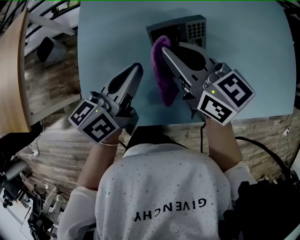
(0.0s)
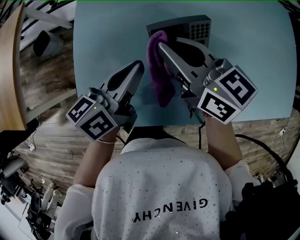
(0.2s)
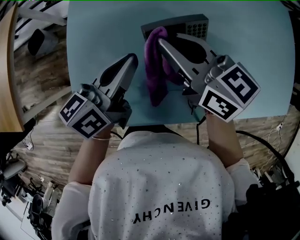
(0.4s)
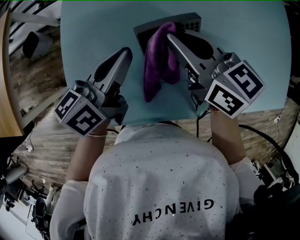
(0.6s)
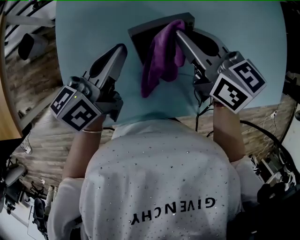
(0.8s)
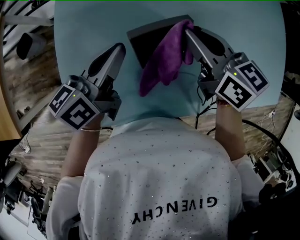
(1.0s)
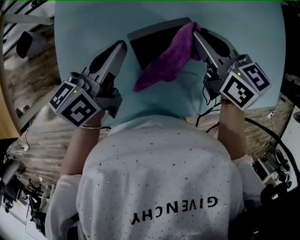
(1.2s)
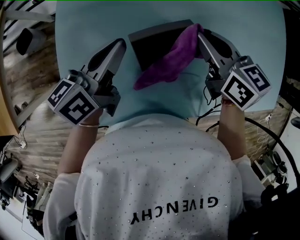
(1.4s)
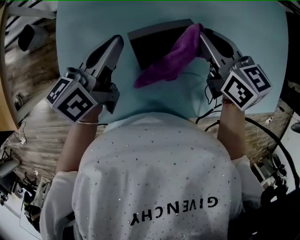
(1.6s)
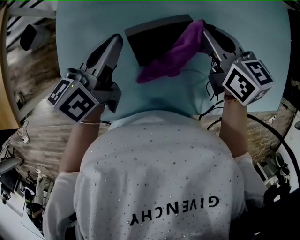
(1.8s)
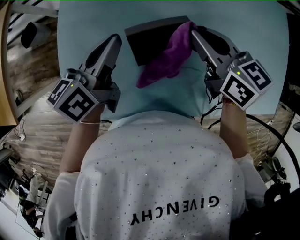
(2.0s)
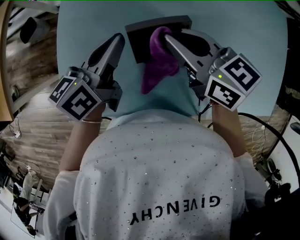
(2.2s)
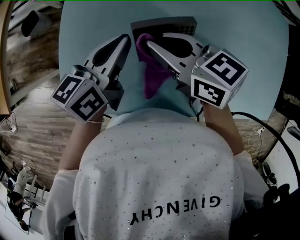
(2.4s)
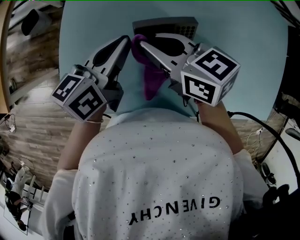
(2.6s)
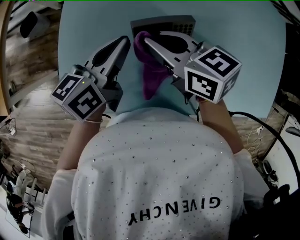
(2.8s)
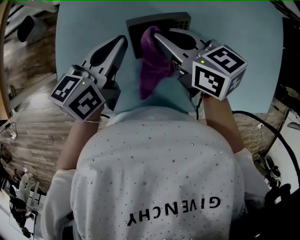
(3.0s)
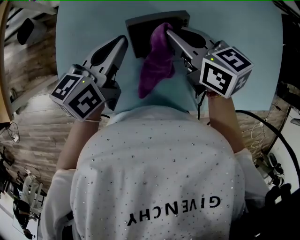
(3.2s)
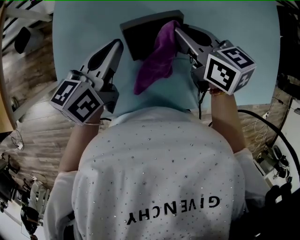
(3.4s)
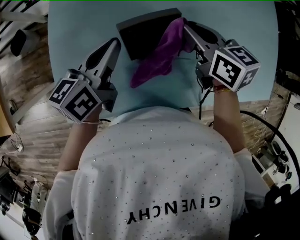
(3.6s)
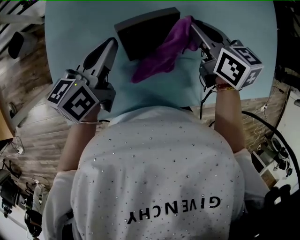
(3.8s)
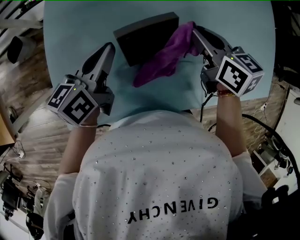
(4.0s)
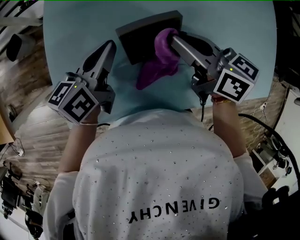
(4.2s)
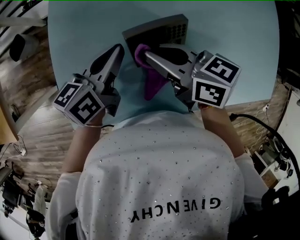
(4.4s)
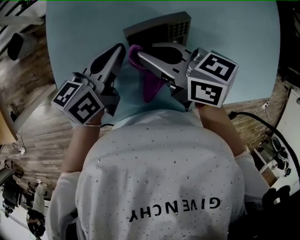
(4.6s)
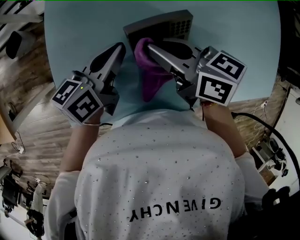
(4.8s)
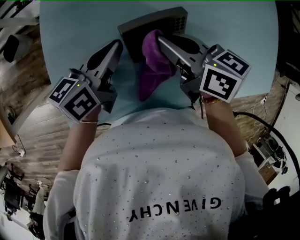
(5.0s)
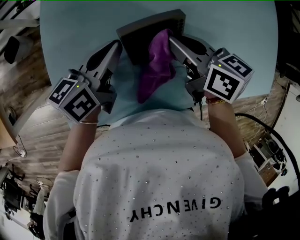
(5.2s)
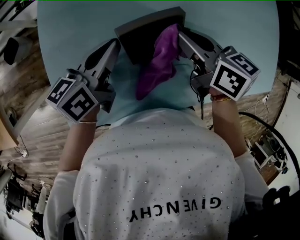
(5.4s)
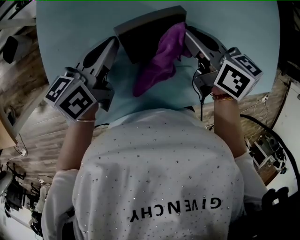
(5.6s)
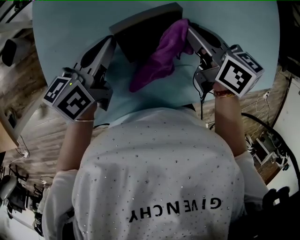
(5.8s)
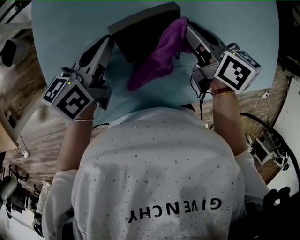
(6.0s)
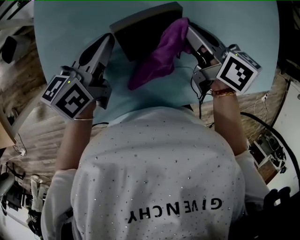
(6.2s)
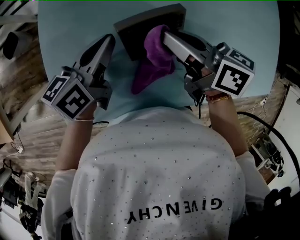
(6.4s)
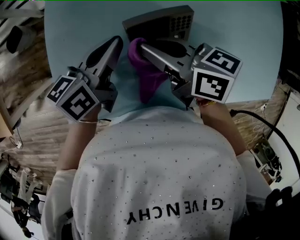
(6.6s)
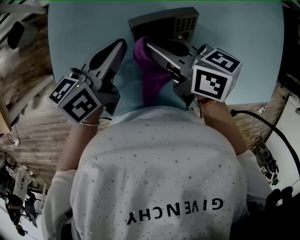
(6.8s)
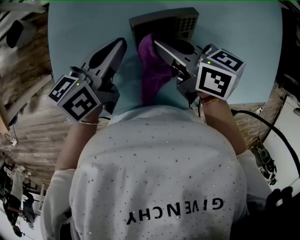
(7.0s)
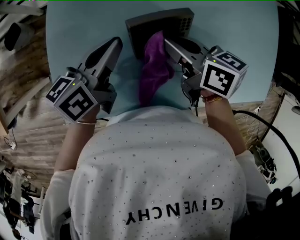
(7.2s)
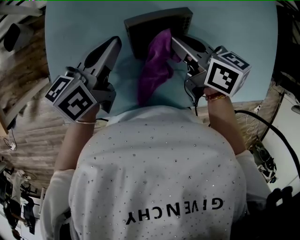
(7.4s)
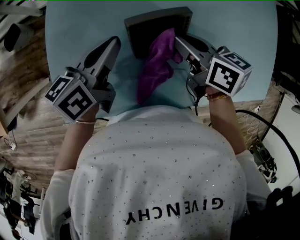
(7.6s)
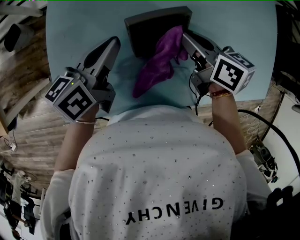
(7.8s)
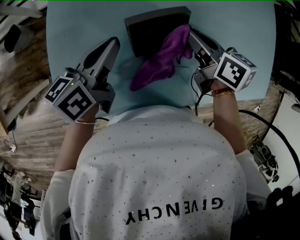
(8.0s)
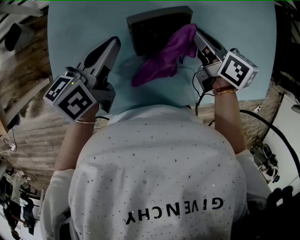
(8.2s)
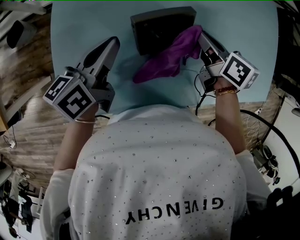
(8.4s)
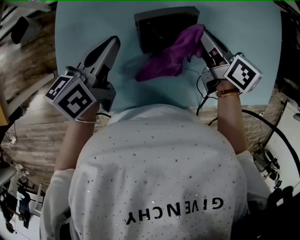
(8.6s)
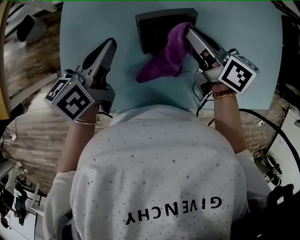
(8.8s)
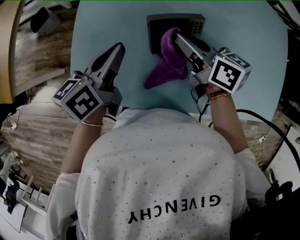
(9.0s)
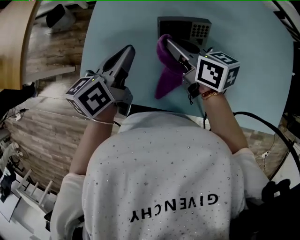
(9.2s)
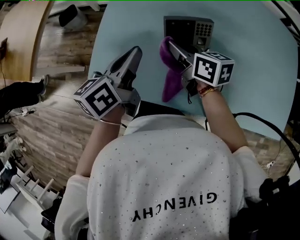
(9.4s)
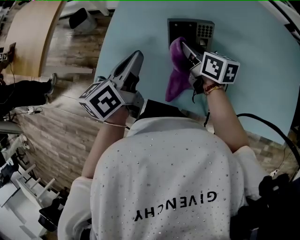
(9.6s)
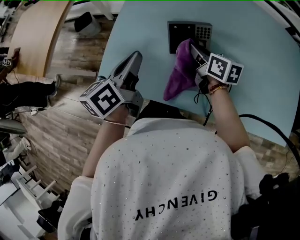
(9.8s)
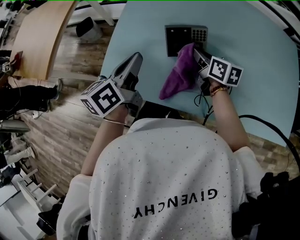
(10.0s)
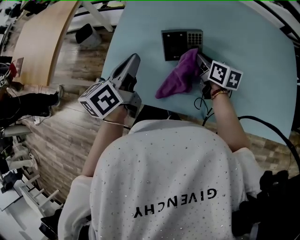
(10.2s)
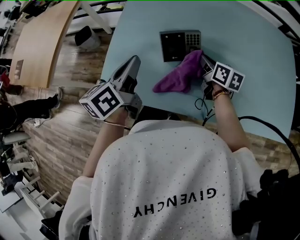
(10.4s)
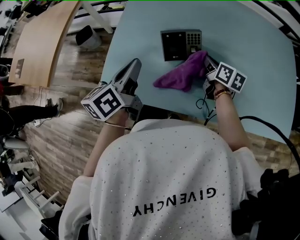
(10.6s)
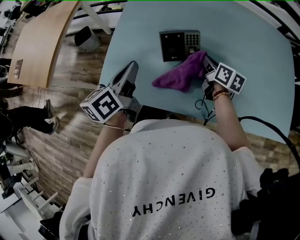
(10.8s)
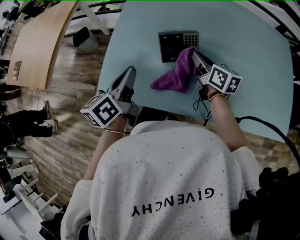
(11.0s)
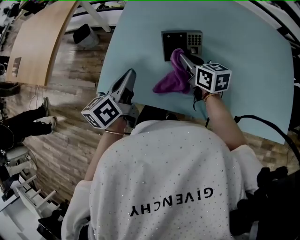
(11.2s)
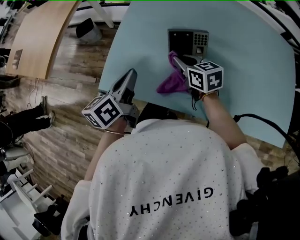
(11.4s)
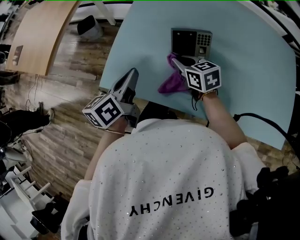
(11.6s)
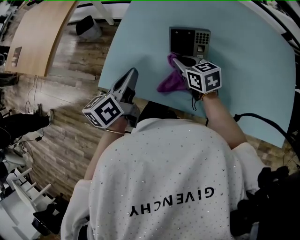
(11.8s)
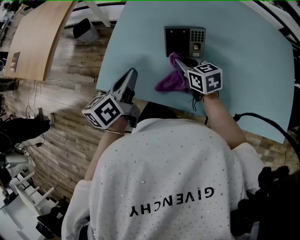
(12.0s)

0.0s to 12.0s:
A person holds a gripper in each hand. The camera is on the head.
0.0s to 1.6s: The right gripper shifts approximately 15 cm to the right and forward. The left gripper goes some 10 cm forward.
1.6s to 3.0s: The right gripper goes approximately 10 cm to the left.
3.0s to 4.4s: The right gripper travels to the right and back again, about 15 cm each way.
4.4s to 6.0s: The right gripper moves to the right, about 15 cm, and swivels roughly 30 degrees.
6.0s to 7.6s: The right gripper is displaced to the left by some 5 cm.
7.6s to 9.0s: The right gripper travels to the right and back again, roughly 10 cm each way; the left gripper heads backward, covering some 5 cm.
9.0s to 10.4s: The right gripper heads to the right, covering approximately 10 cm. Meanwhile the left gripper goes approximately 10 cm upward and backward.
10.4s to 12.0s: The left gripper changes place by some 10 cm. The right gripper moves to the left, approximately 10 cm, and turns by roughly 30 degrees.

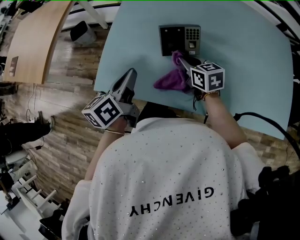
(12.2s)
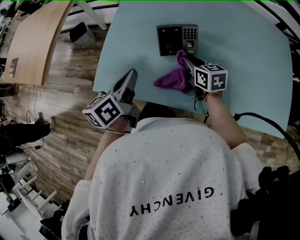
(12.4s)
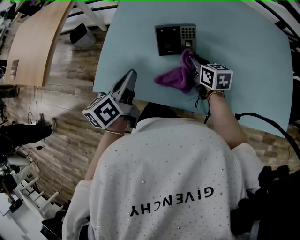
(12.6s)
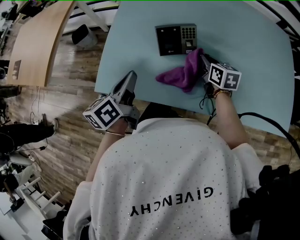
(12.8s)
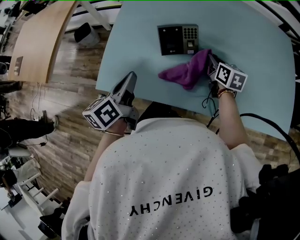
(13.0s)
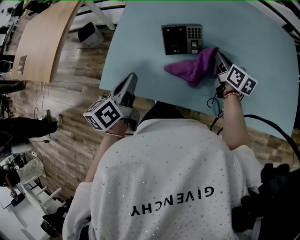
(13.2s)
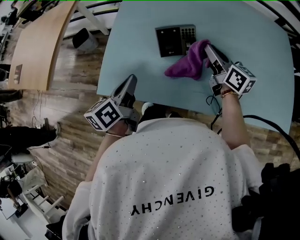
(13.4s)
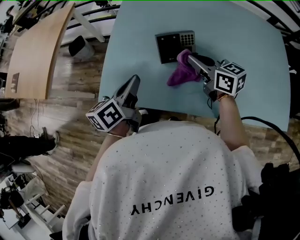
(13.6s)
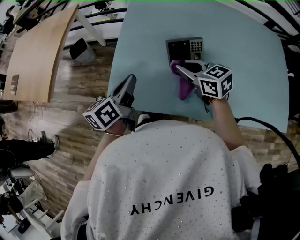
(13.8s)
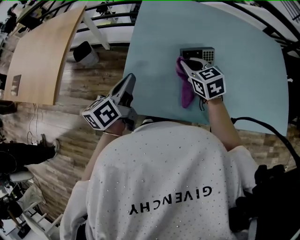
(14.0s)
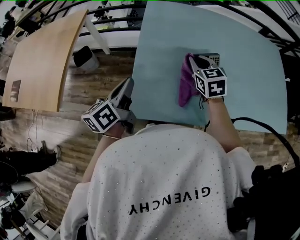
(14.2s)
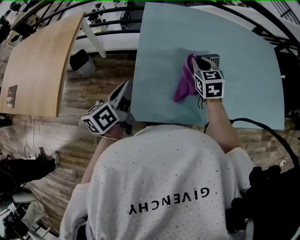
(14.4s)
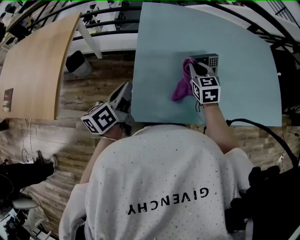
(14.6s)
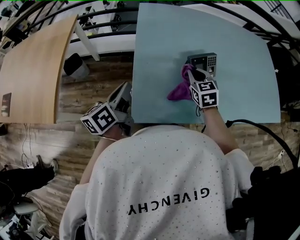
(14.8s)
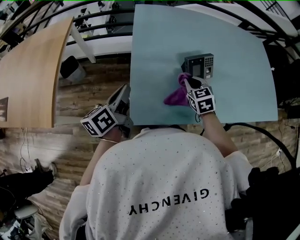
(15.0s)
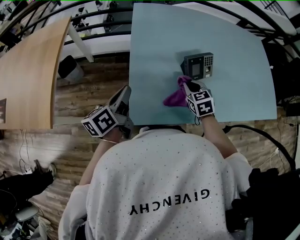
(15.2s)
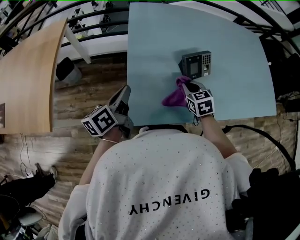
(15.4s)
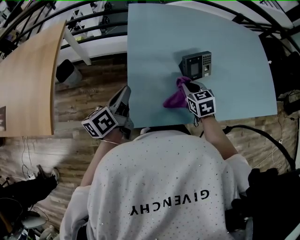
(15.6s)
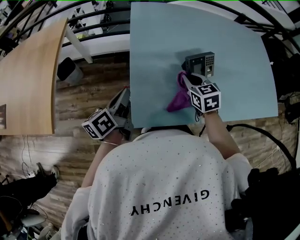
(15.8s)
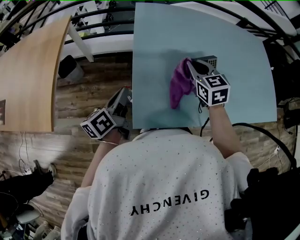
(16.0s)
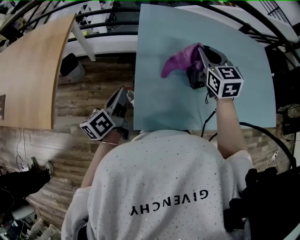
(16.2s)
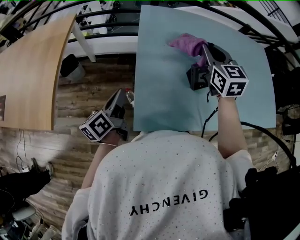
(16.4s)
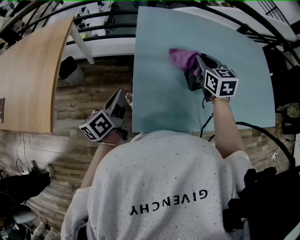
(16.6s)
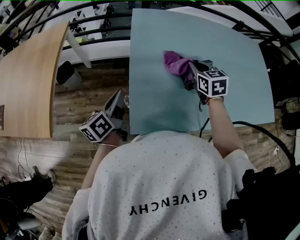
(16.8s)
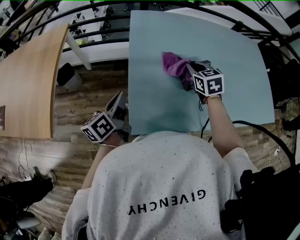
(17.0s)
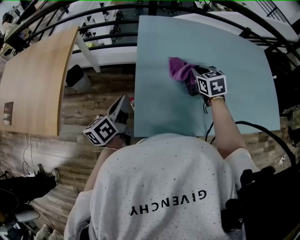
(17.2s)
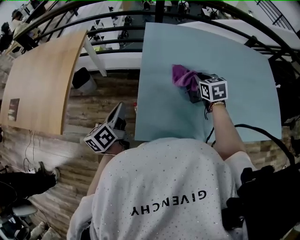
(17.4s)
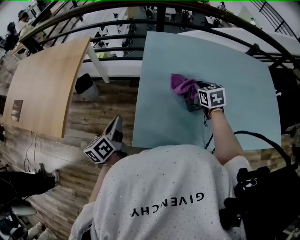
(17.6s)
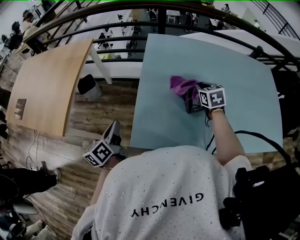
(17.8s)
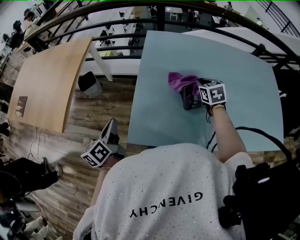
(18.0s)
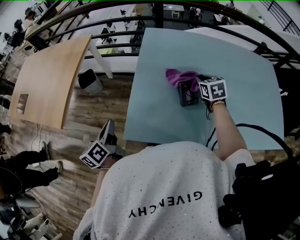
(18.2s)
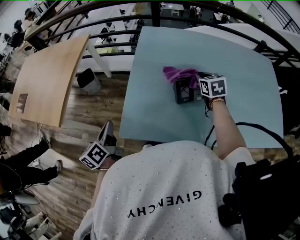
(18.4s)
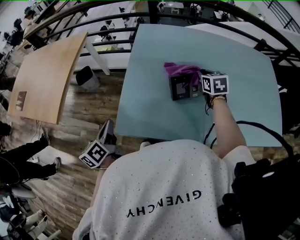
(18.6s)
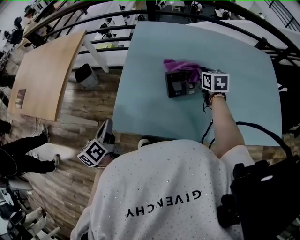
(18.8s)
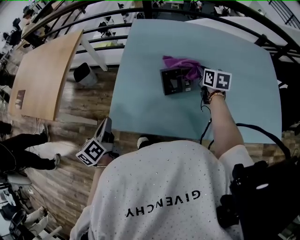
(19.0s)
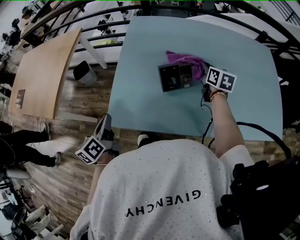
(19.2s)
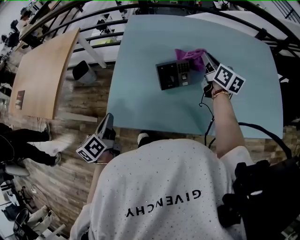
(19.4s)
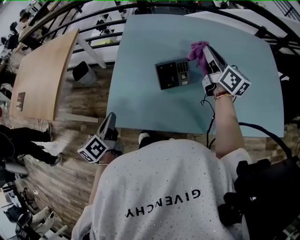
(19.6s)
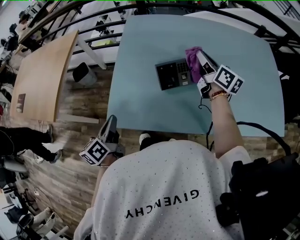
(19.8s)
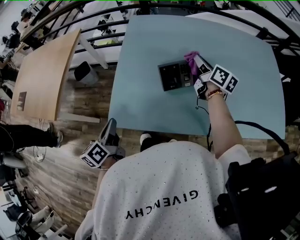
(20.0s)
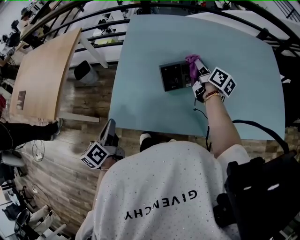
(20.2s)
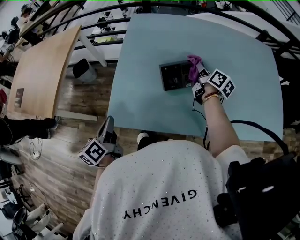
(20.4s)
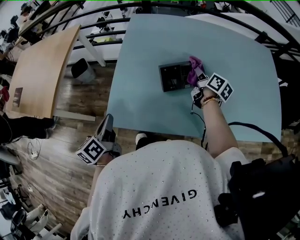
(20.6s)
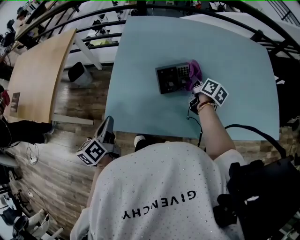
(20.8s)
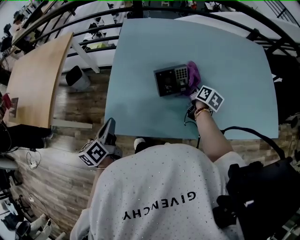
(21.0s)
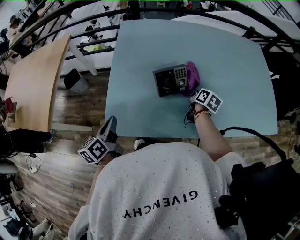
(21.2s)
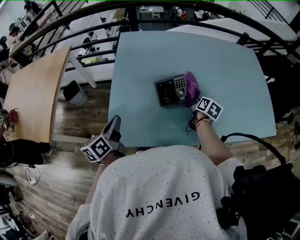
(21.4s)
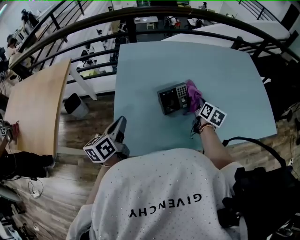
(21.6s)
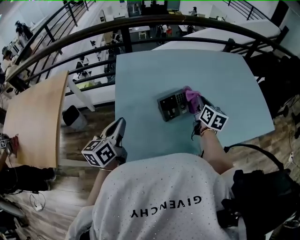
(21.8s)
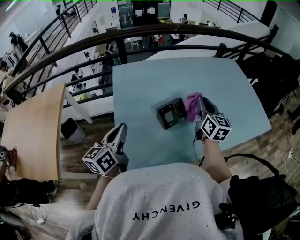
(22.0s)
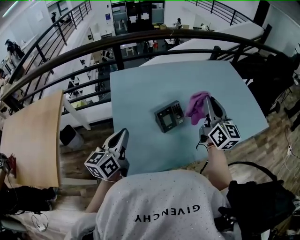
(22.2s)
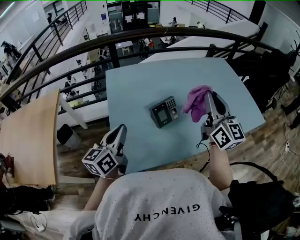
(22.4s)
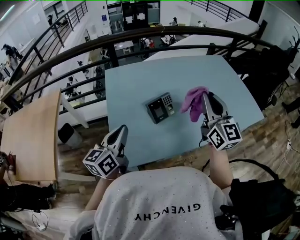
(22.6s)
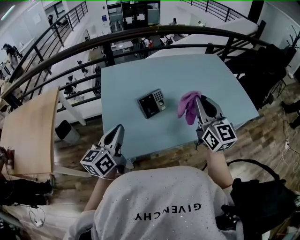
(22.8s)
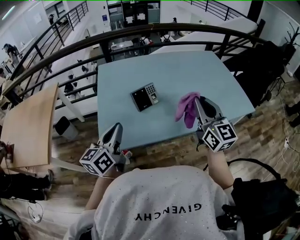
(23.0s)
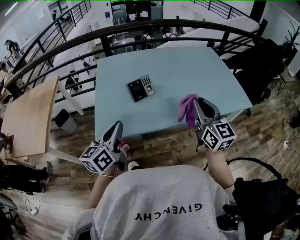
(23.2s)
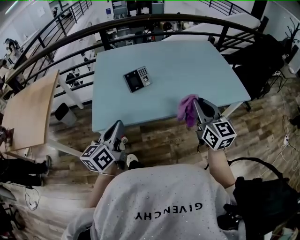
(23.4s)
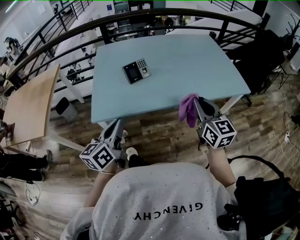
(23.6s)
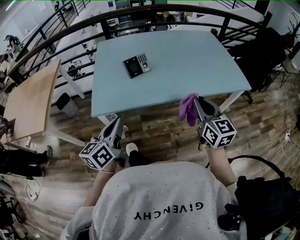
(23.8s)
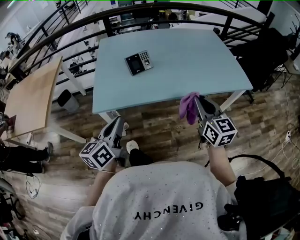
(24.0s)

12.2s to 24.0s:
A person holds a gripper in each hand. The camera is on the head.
12.2s to 13.6s: The right gripper moves upward, about 10 cm, and travels to the right and back again, approximately 15 cm each way.
13.6s to 15.2s: The left gripper moves approximately 20 cm; the right gripper shifts by roughly 15 cm, and changes its angle by approximately 50 degrees.
15.2s to 16.6s: The left gripper travels to the left by about 5 cm. Meanwhile the right gripper shifts approximately 20 cm upward and forward.
16.6s to 18.2s: The left gripper moves backward, about 10 cm, and rotates approximately 20 degrees, while the right gripper shifts about 10 cm to the right and downward.
18.2s to 19.6s: The right gripper heads upward and to the right, covering some 15 cm, and points its fingers about 40 degrees further upward. The left gripper shifts some 10 cm to the right.
19.6s to 21.0s: The right gripper is displaced downward by approximately 25 cm, and tilts its fingers approximately 40 degrees downward.
21.0s to 22.6s: The left gripper heads upward and forward, covering about 15 cm, and swivels approximately 40 degrees; the right gripper travels upward and backward by roughly 35 cm, and points its fingers some 50 degrees further upward.
22.6s to 24.0s: The right gripper is displaced backward, to the right and downward by some 30 cm, and turns by some 20 degrees. Meanwhile the left gripper heads backward and to the right, covering roughly 30 cm.
